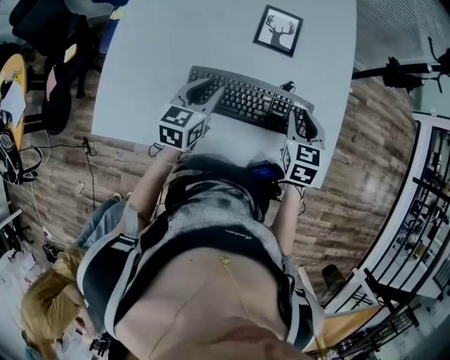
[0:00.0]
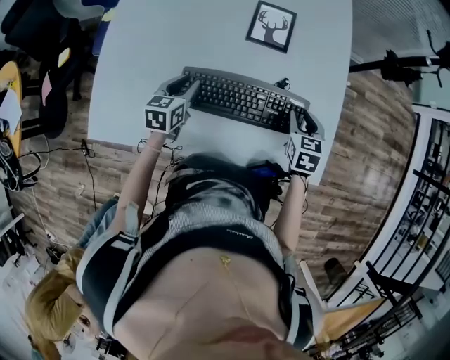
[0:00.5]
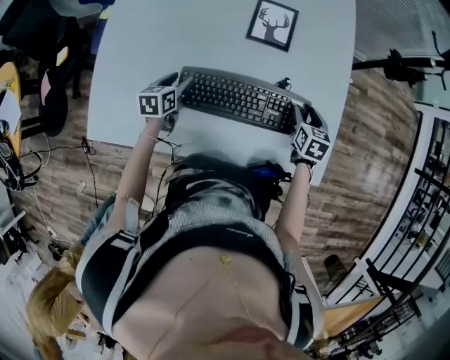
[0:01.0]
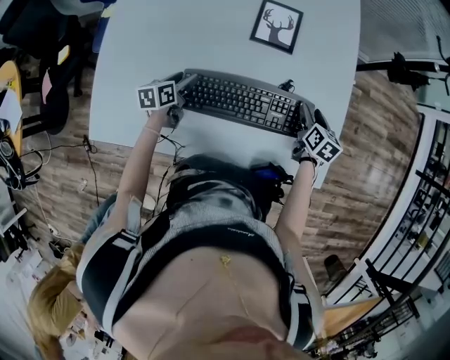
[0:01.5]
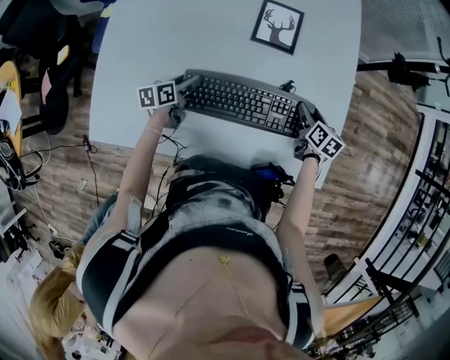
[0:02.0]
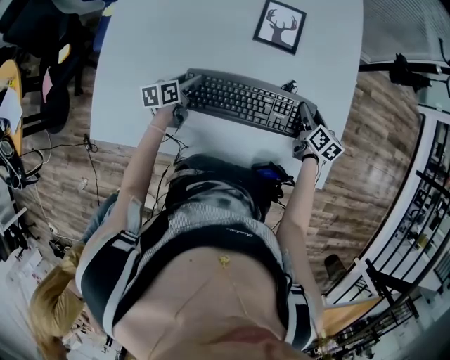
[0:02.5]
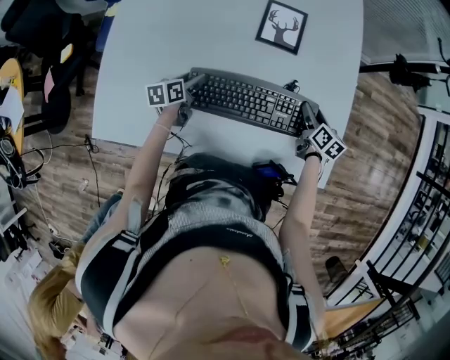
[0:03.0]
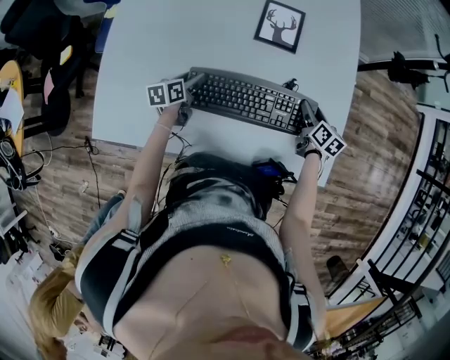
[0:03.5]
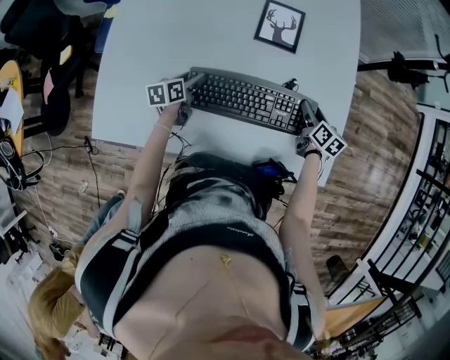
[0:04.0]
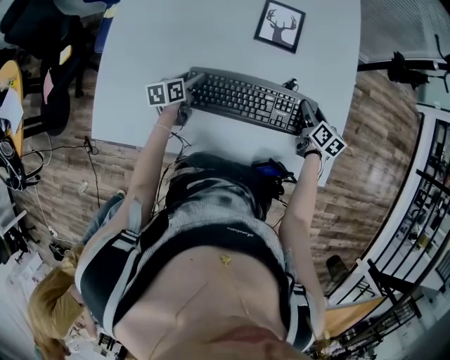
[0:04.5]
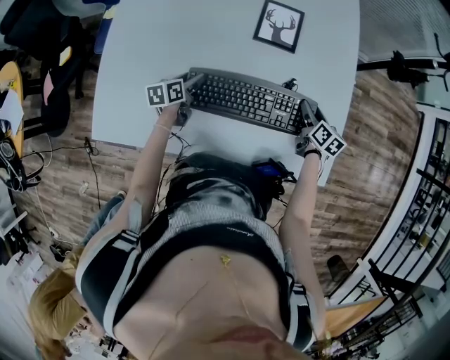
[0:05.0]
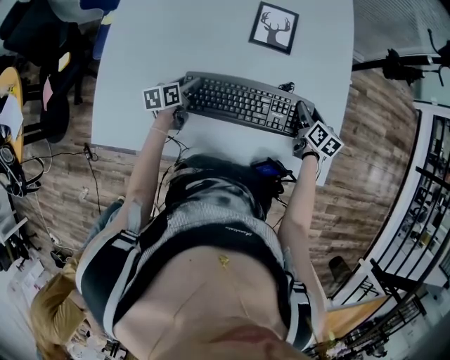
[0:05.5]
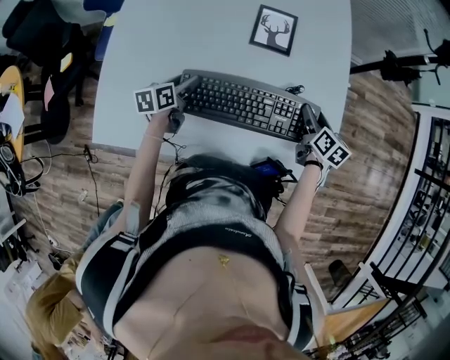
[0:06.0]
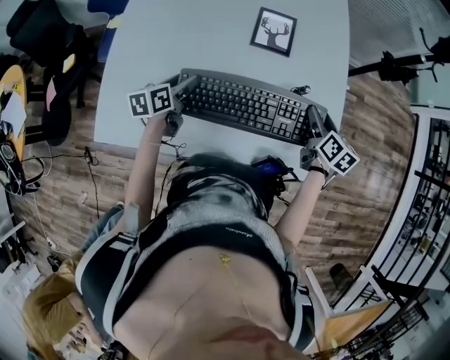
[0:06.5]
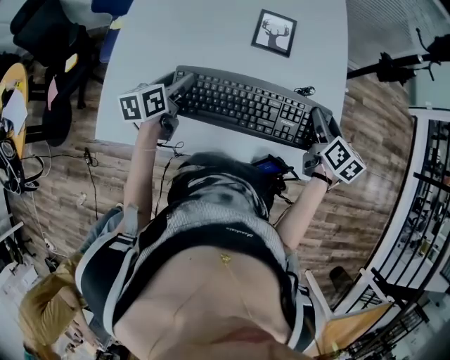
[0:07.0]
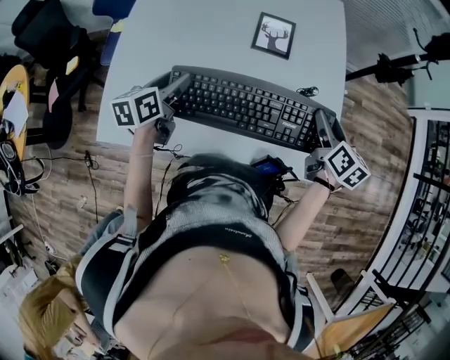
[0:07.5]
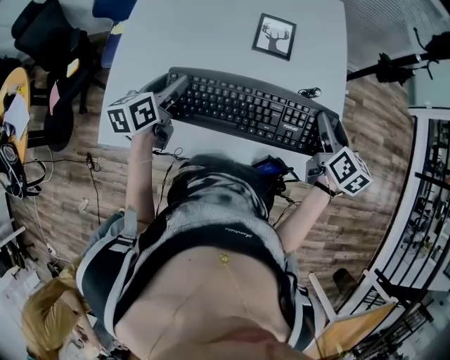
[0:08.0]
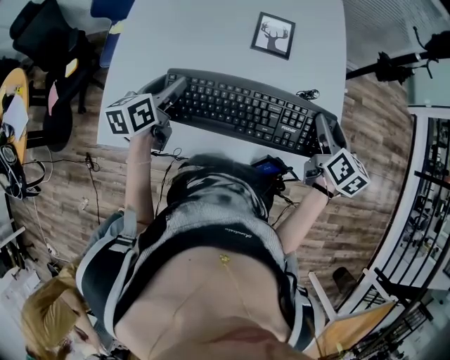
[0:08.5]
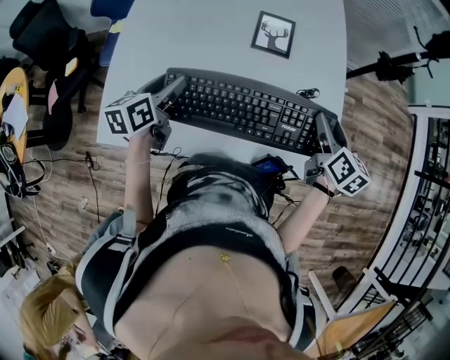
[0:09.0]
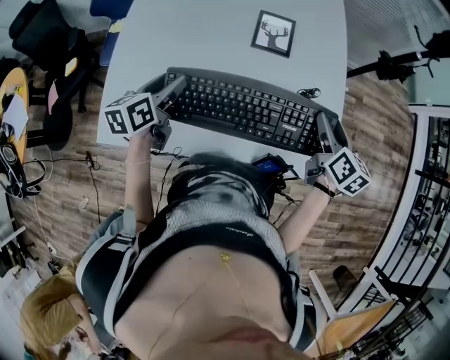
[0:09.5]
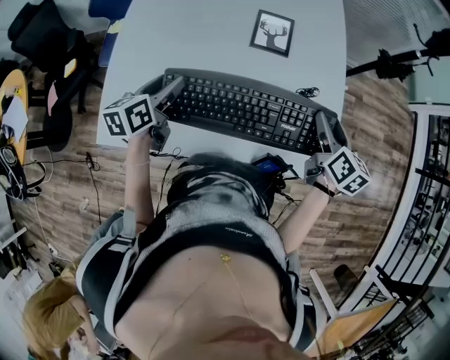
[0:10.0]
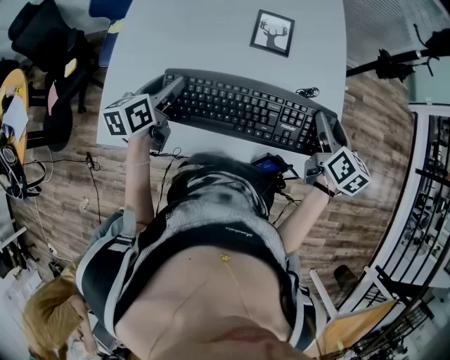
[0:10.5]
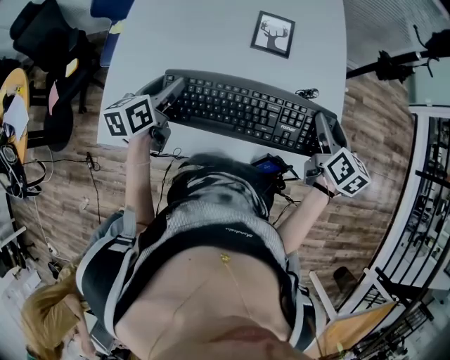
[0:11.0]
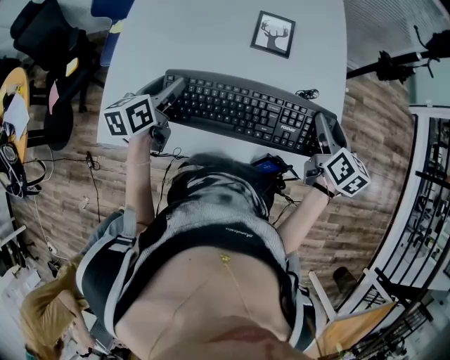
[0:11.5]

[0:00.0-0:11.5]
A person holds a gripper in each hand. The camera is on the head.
0:00.0 to 0:02.0: The left gripper is displaced downward and to the left by approximately 20 cm, changes its angle by about 30 degrees, and opens up; the right gripper moves downward, to the right and forward, about 20 cm, rotates some 40 degrees, and opens.
0:02.0 to 0:04.0: The grippers stay close to where they were, moving slightly.
0:04.0 to 0:06.0: The two grippers go roughly 5 cm upward.
0:06.0 to 0:07.5: The two grippers go approximately 15 cm upward.
0:07.5 to 0:09.5: The grippers make only small movements.
0:09.5 to 0:11.5: Neither gripper changes place.

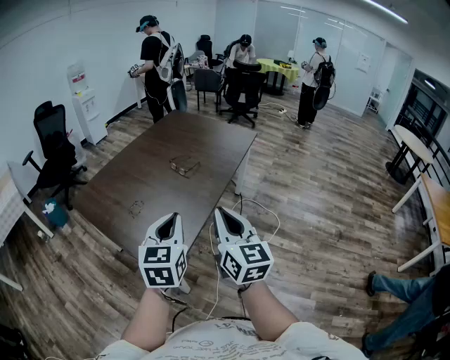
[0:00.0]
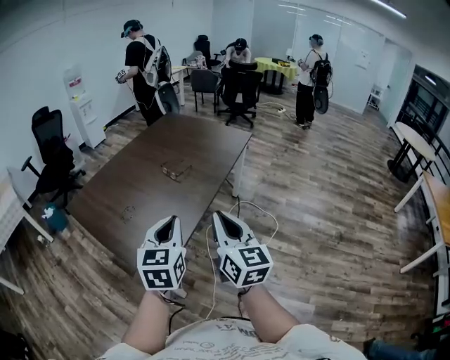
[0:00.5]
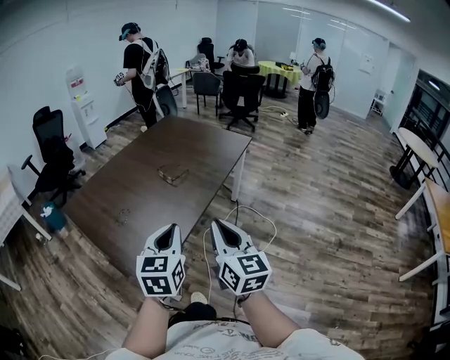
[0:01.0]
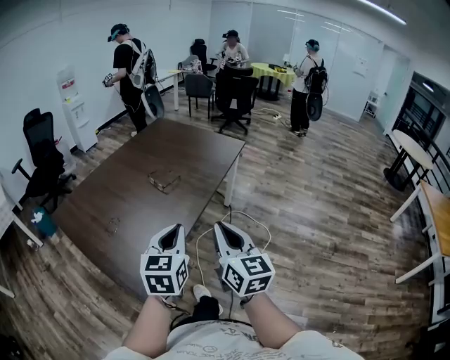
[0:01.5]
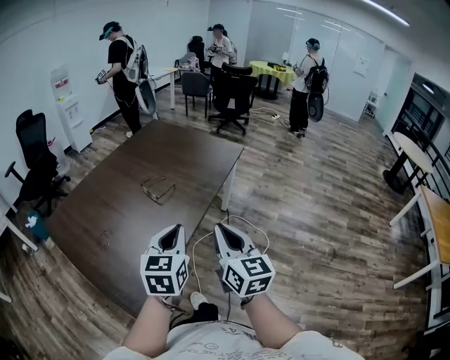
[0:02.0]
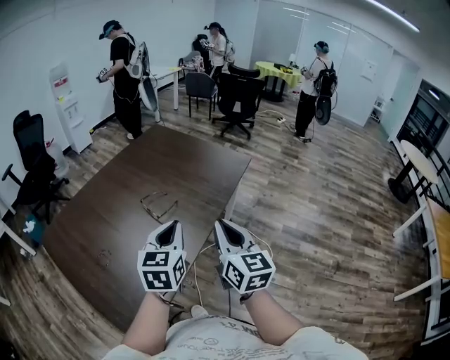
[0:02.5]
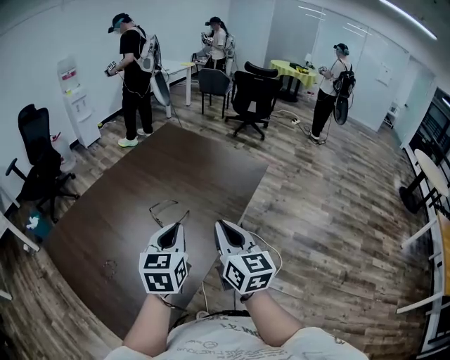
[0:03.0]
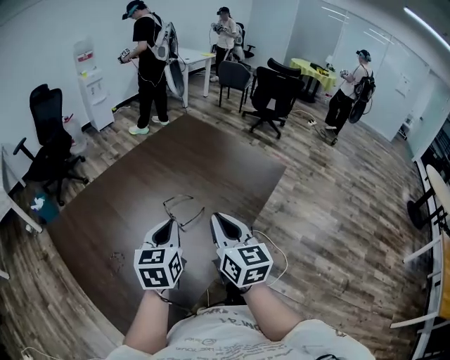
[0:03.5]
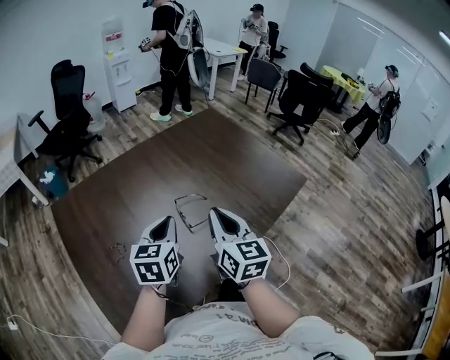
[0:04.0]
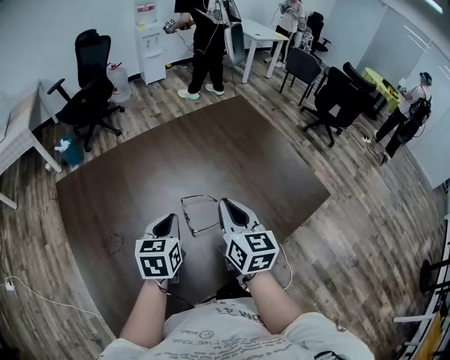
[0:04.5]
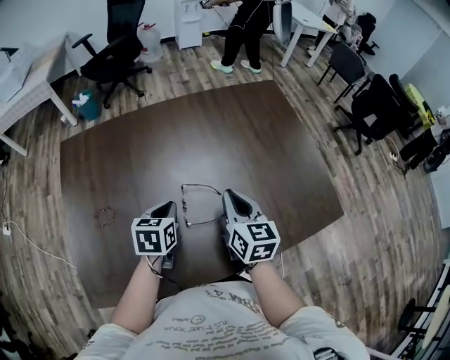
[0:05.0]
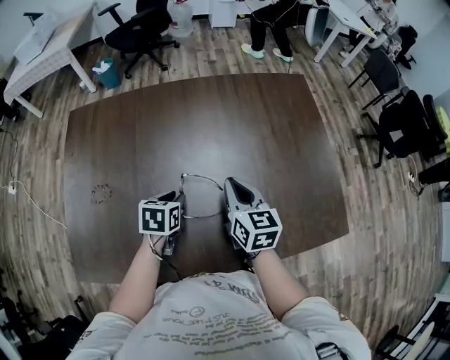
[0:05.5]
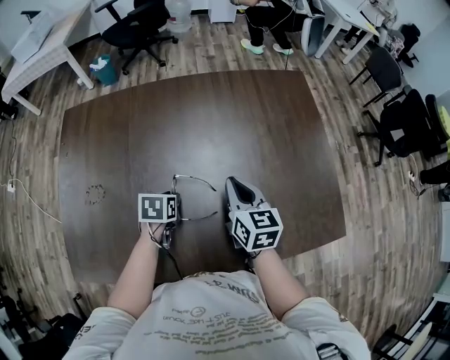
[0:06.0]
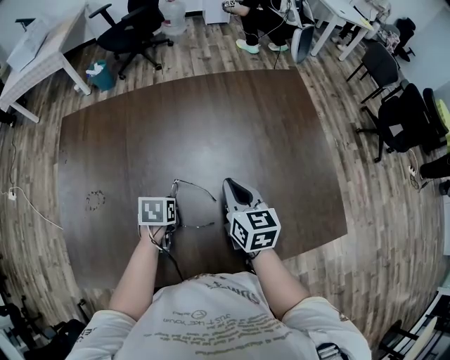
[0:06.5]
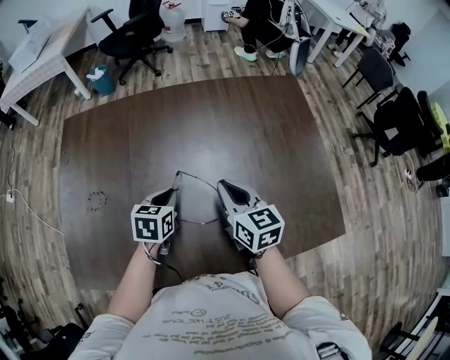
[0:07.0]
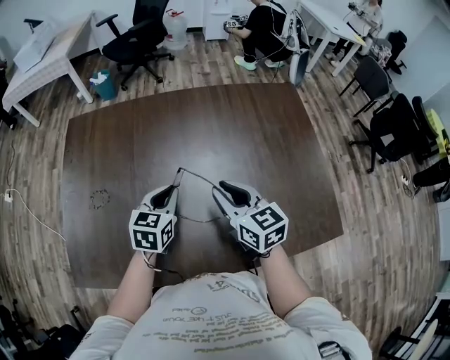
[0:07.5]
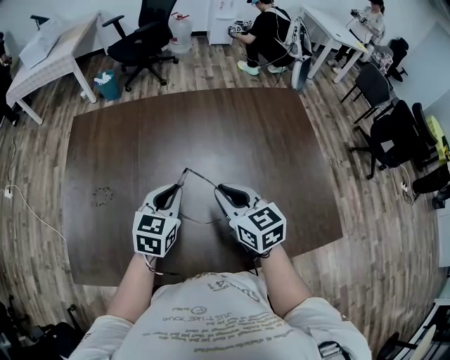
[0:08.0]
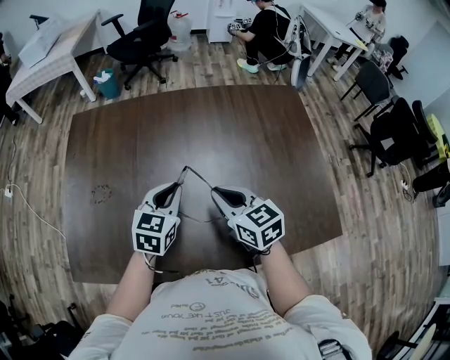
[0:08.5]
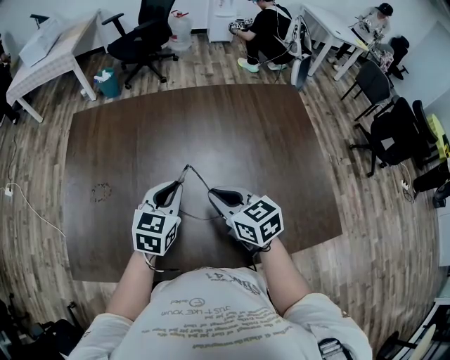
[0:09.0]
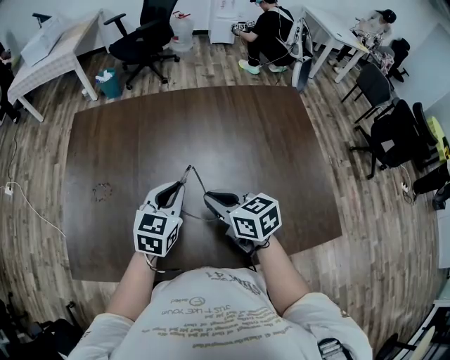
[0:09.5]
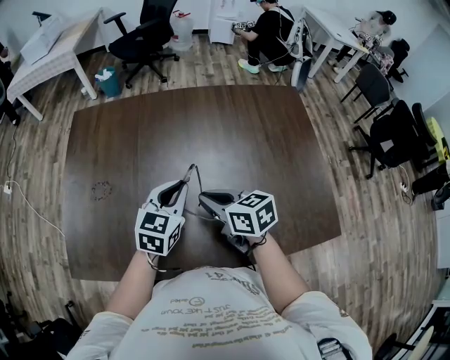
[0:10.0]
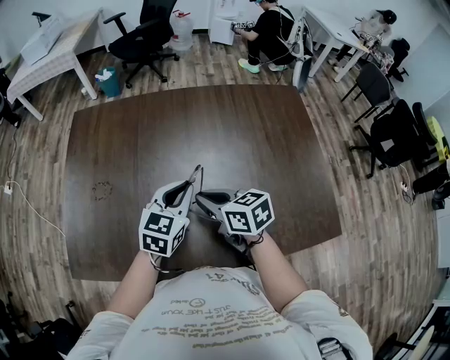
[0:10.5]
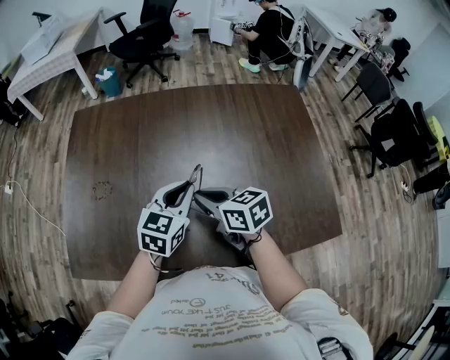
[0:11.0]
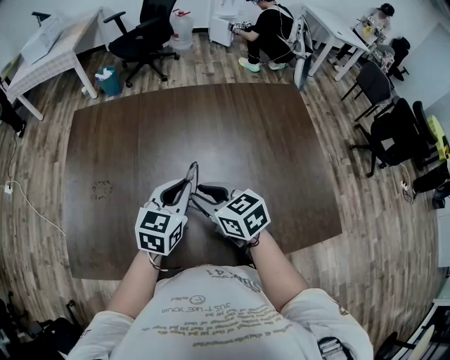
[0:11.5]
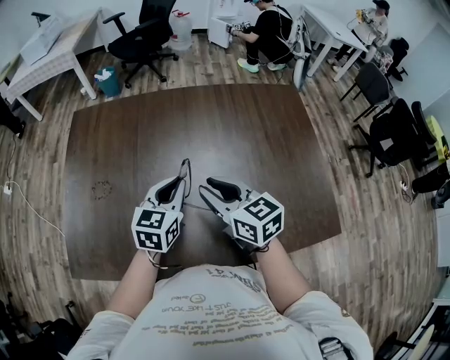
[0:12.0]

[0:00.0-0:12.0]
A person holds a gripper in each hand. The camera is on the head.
0:00.0 to 0:02.0: The grippers both shift forward and to the right by approximately 20 cm.
0:02.0 to 0:04.0: The right gripper shifts about 35 cm forward, and changes its angle by some 20 degrees. The left gripper moves forward and to the left, approximately 30 cm, and swivels about 30 degrees.
0:04.0 to 0:06.0: The right gripper travels forward, downward and to the right by about 30 cm, and changes its angle by about 40 degrees. The left gripper moves downward and forward, approximately 25 cm, points its fingers roughly 40 degrees further downward, and opens up.
0:06.0 to 0:08.0: The right gripper travels to the left by approximately 5 cm, and turns by roughly 20 degrees. Meanwhile the left gripper shifts approximately 15 cm upward, and tilts its fingers roughly 30 degrees upward.
0:08.0 to 0:10.0: The right gripper changes place by roughly 5 cm, and changes its angle by about 20 degrees.
0:10.0 to 0:12.0: The right gripper is displaced upward by some 5 cm, and opens up.

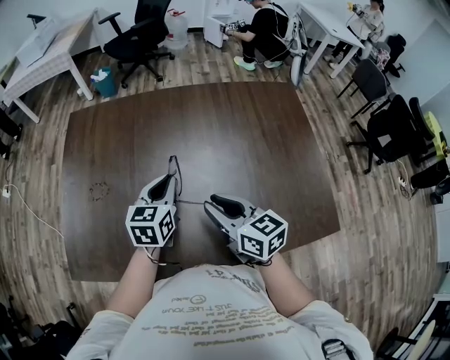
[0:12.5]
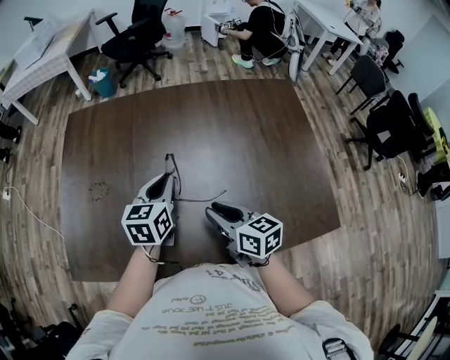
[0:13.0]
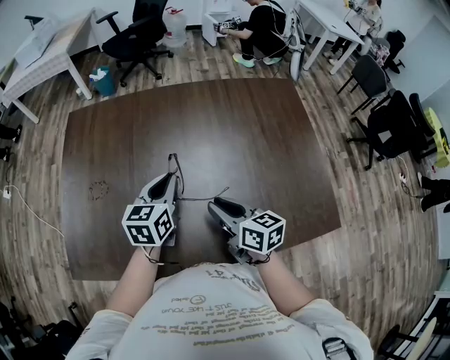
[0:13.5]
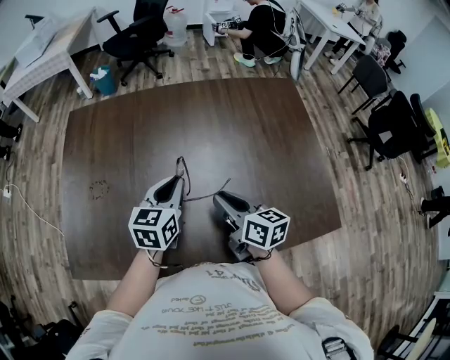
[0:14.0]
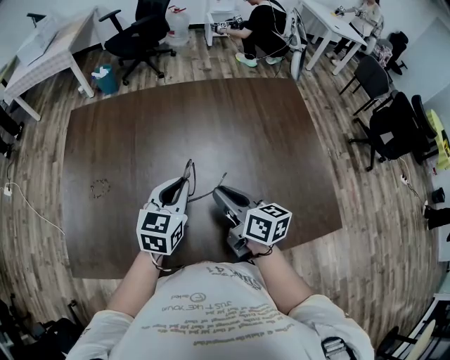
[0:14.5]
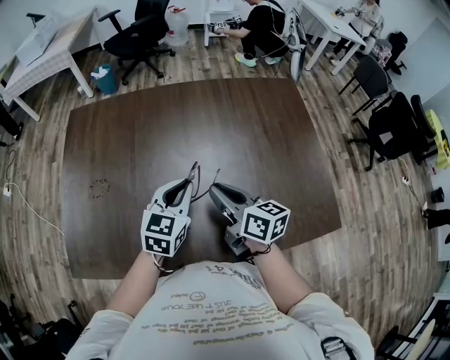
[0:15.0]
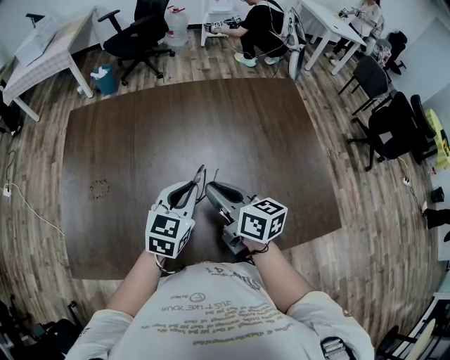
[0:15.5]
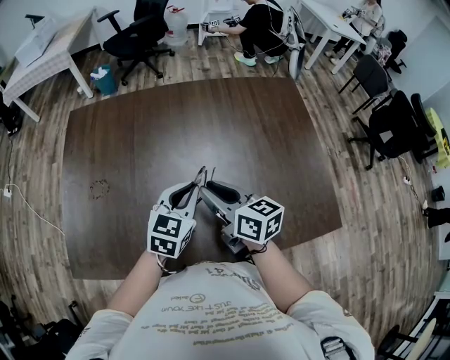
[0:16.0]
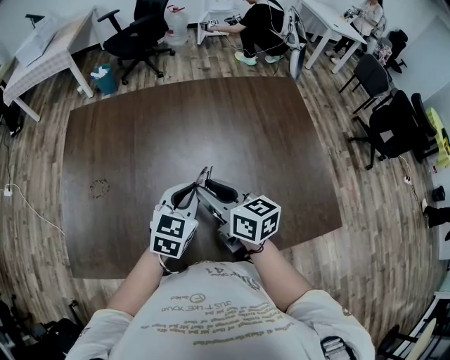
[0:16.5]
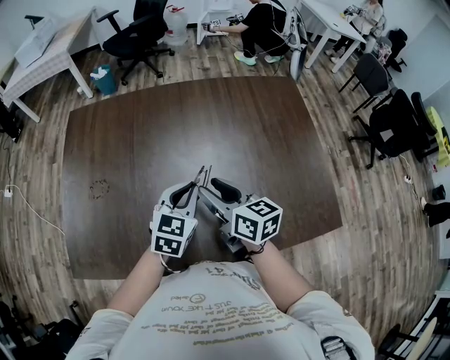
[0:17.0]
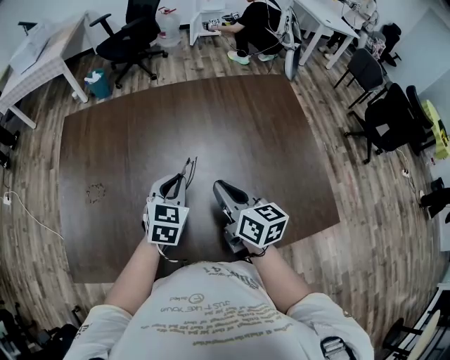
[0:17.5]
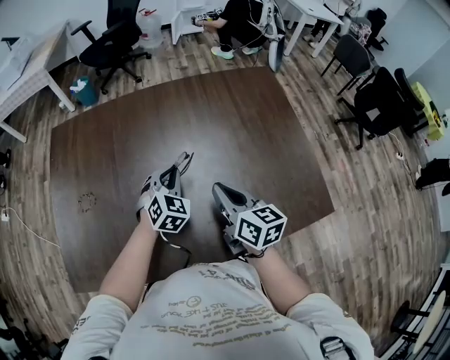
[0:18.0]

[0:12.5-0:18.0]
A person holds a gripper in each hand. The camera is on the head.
0:12.5 to 0:14.5: There are only small adjustments of the grippers.
0:14.5 to 0:16.0: The grippers make only small movements.
0:16.0 to 0:18.0: The right gripper heads to the right, covering some 10 cm, and opens and closes again. Meanwhile the left gripper goes approximately 10 cm forward and downward, and turns by about 30 degrees.
